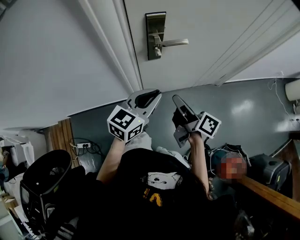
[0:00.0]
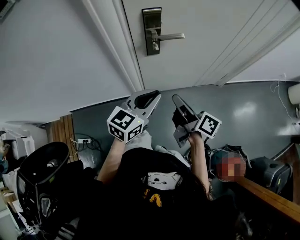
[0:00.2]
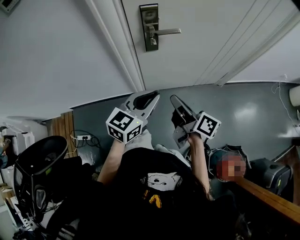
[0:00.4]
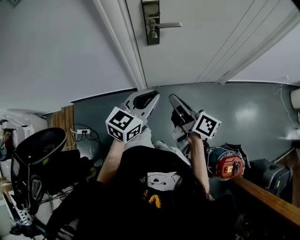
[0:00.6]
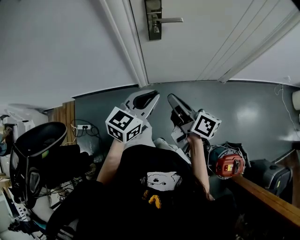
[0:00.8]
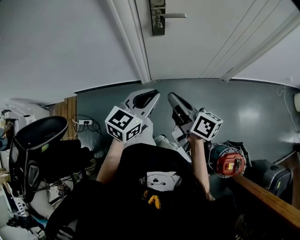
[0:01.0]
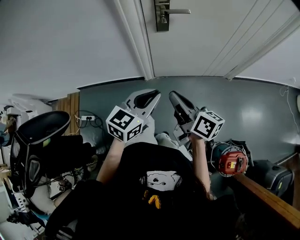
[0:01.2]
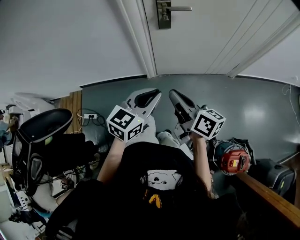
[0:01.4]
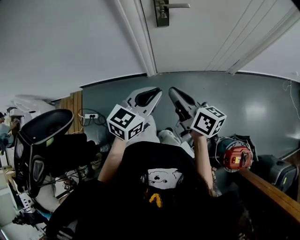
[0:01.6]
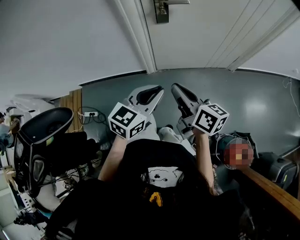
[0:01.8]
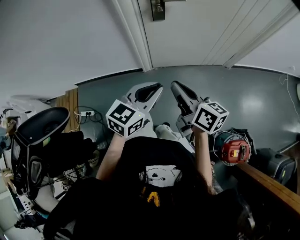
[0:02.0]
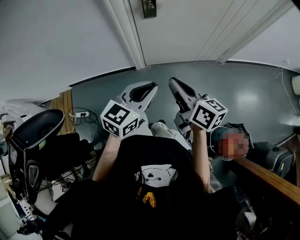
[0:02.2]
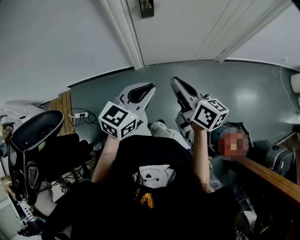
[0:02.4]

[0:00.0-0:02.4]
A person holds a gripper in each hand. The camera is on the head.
0.0 to 1.2 s: The left gripper moves about 20 cm.

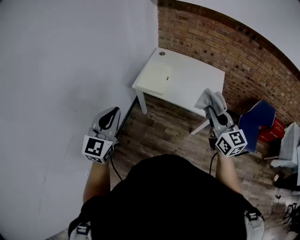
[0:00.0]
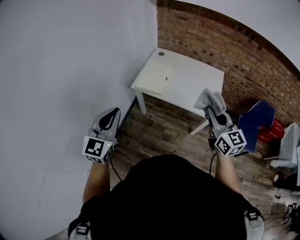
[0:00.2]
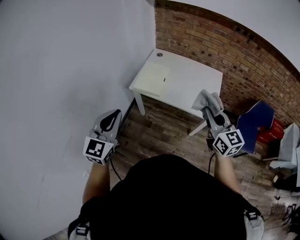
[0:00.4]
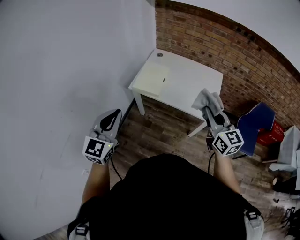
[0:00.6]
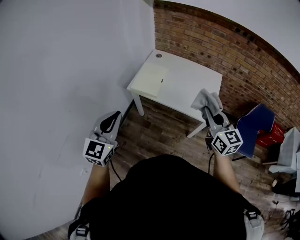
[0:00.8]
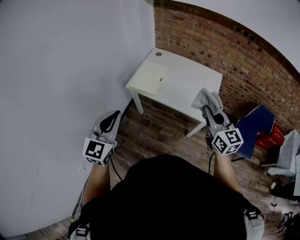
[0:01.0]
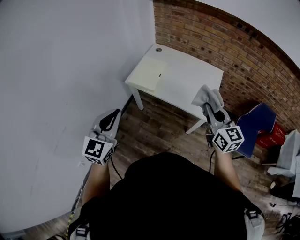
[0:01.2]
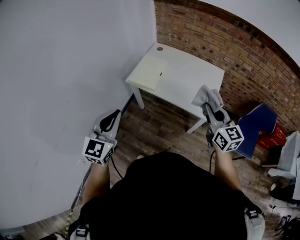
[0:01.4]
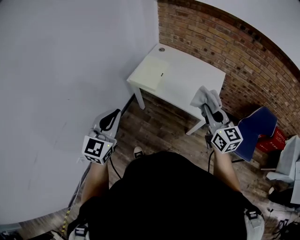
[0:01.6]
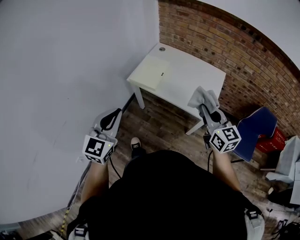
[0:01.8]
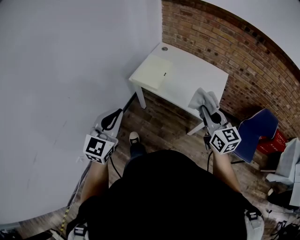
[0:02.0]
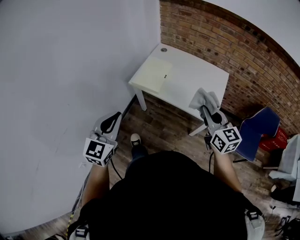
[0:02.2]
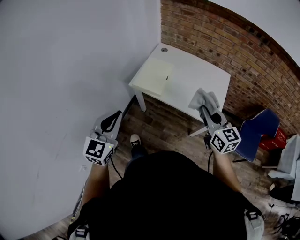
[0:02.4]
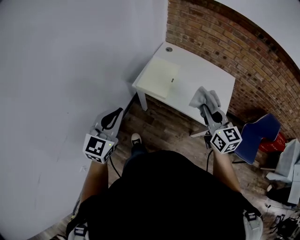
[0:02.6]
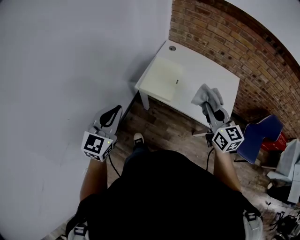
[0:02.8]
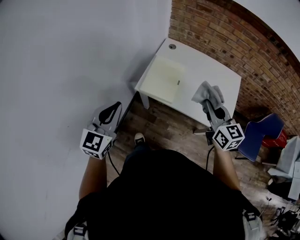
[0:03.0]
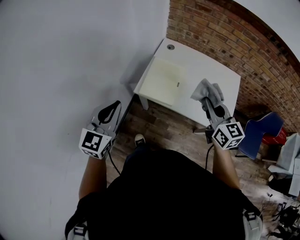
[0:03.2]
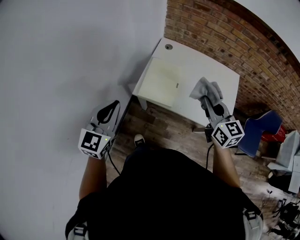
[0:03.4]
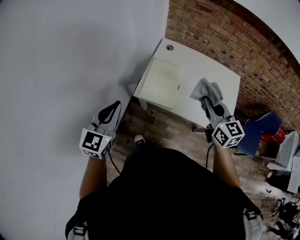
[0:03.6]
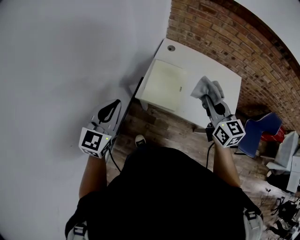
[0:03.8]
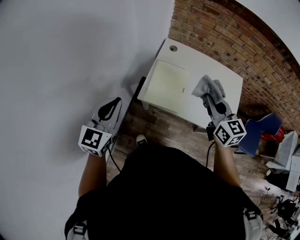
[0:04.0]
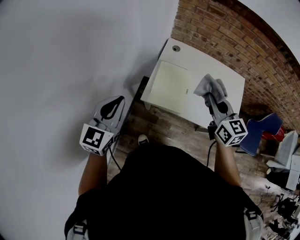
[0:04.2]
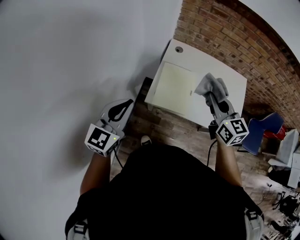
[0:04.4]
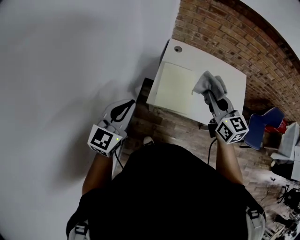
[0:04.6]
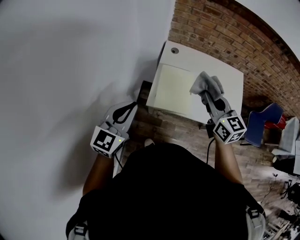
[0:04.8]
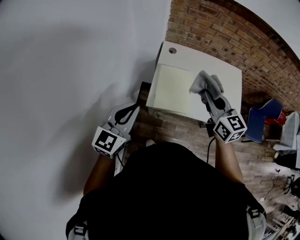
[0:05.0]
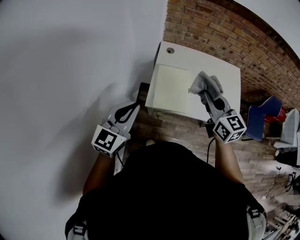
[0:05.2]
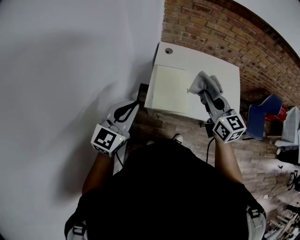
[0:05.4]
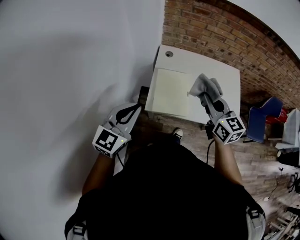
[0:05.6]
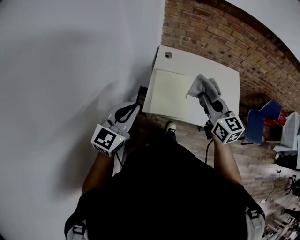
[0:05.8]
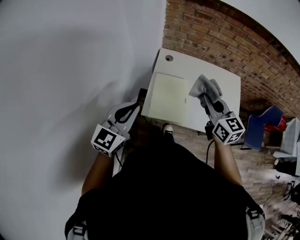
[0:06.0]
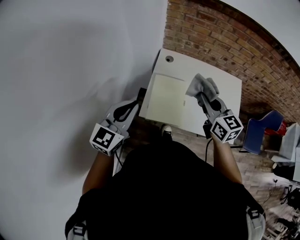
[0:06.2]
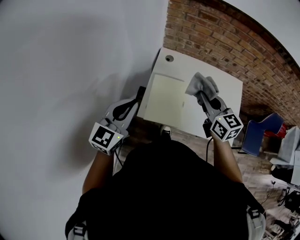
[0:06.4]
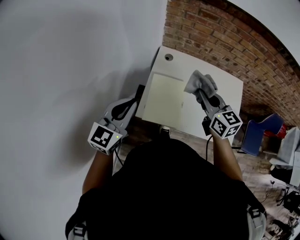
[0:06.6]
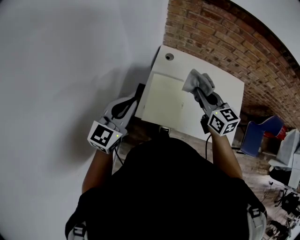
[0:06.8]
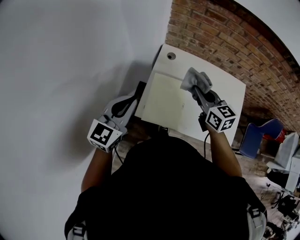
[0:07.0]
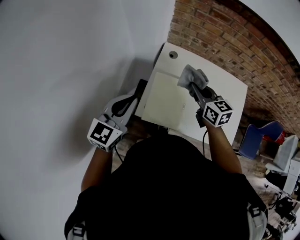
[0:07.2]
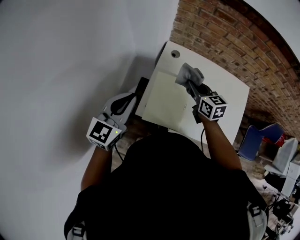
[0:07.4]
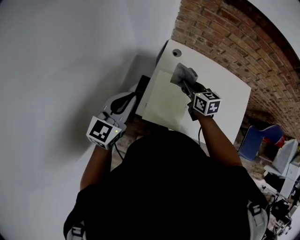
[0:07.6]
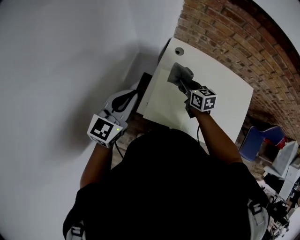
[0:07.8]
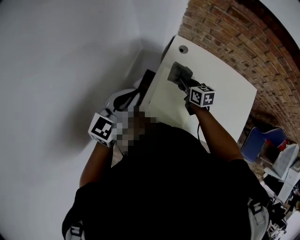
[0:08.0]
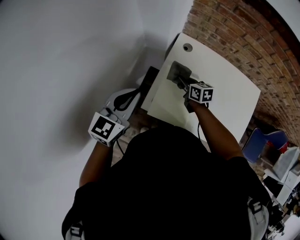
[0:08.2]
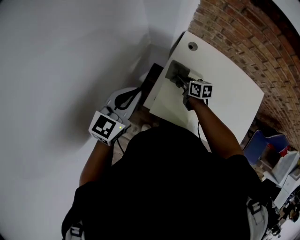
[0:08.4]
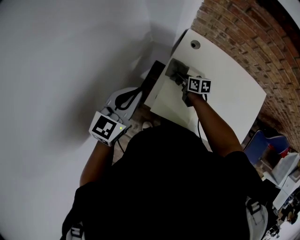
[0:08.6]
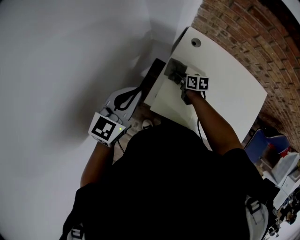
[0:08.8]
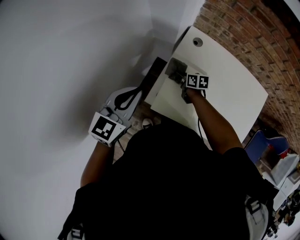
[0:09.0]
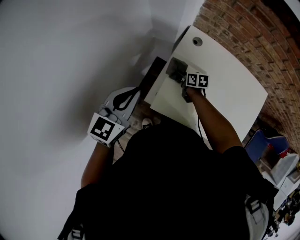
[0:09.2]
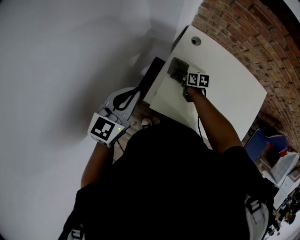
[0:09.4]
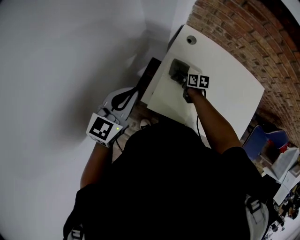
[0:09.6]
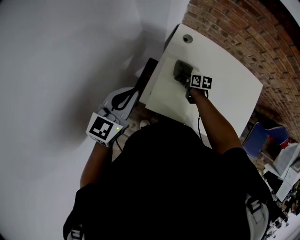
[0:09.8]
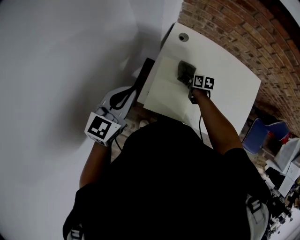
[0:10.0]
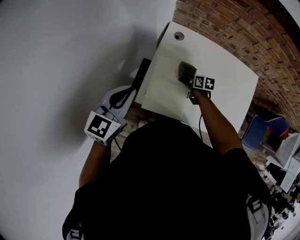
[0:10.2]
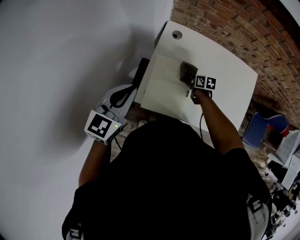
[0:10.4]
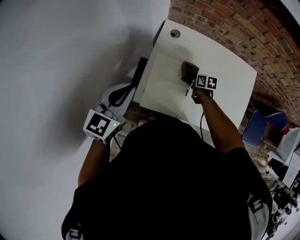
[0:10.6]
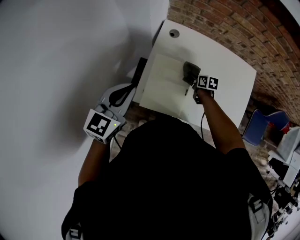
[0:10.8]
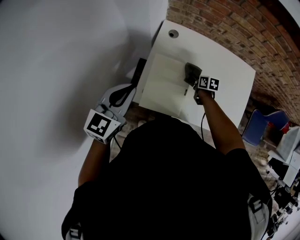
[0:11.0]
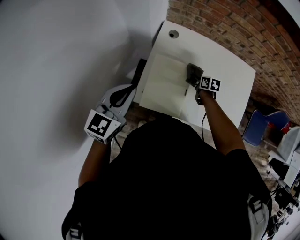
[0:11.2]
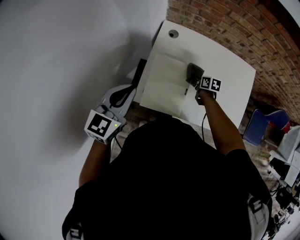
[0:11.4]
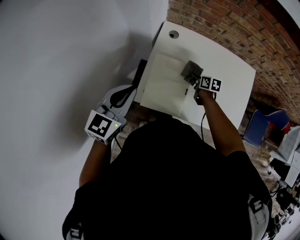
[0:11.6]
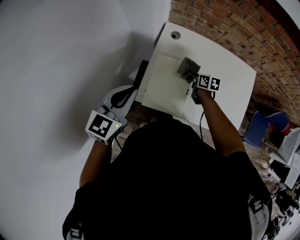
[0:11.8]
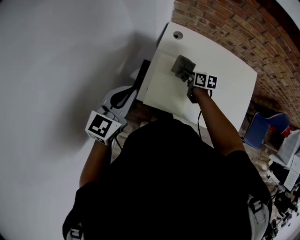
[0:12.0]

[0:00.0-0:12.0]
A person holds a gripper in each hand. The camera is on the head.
0.0 to 1.6 s: The grippers both shift to the right by about 10 cm.
1.6 to 3.0 s: The two grippers go approximately 25 cm forward and to the left.
3.0 to 4.4 s: Both grippers move forward and to the left, roughly 15 cm.
4.4 to 6.0 s: The left gripper is displaced forward by about 5 cm.
6.0 to 7.6 s: The right gripper goes about 25 cm forward and downward, and turns by approximately 20 degrees; the left gripper travels forward by approximately 10 cm.
7.6 to 9.0 s: The right gripper is displaced downward and to the left by some 20 cm, and rotates some 30 degrees.
9.0 to 10.4 s: The right gripper is displaced to the right by about 15 cm.
10.4 to 12.0 s: The right gripper is displaced upward and to the left by approximately 10 cm.

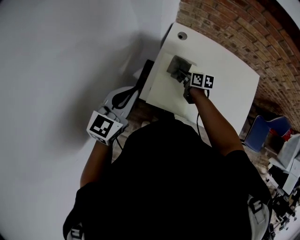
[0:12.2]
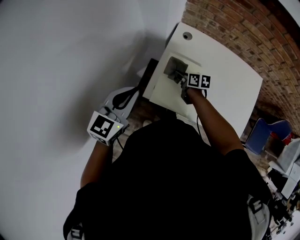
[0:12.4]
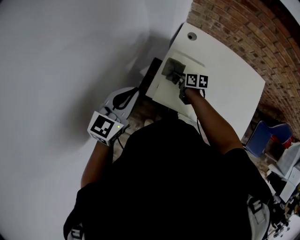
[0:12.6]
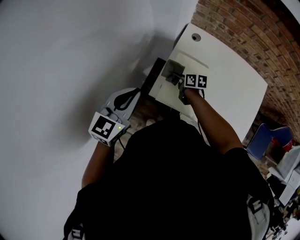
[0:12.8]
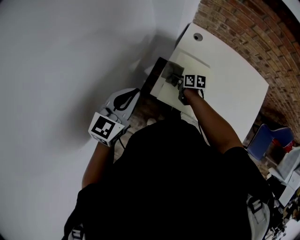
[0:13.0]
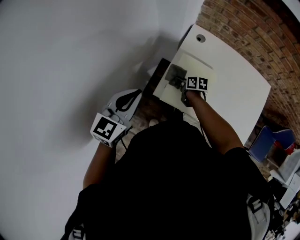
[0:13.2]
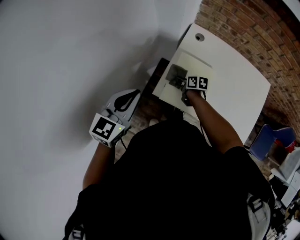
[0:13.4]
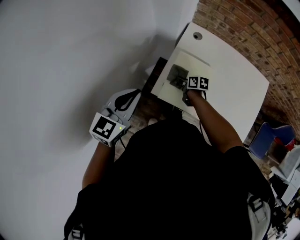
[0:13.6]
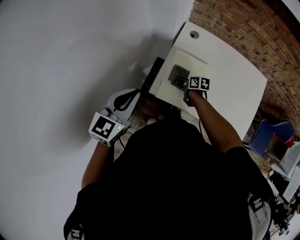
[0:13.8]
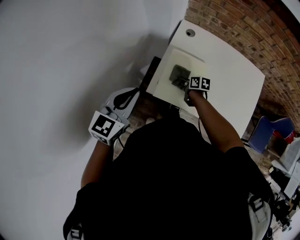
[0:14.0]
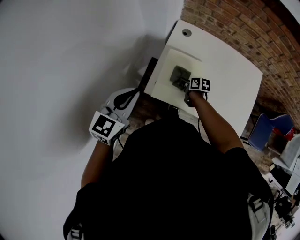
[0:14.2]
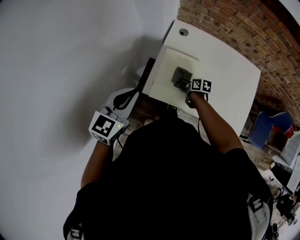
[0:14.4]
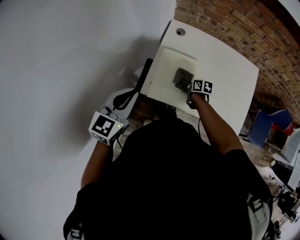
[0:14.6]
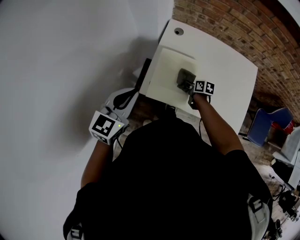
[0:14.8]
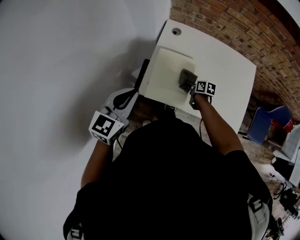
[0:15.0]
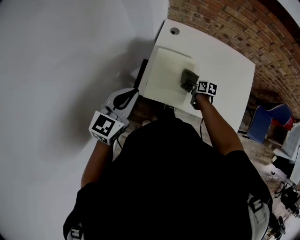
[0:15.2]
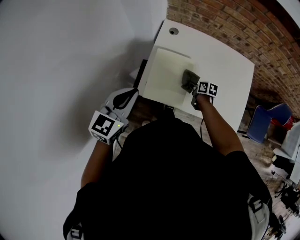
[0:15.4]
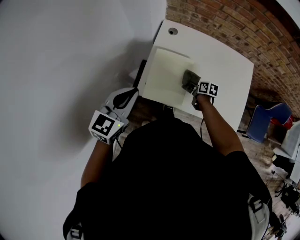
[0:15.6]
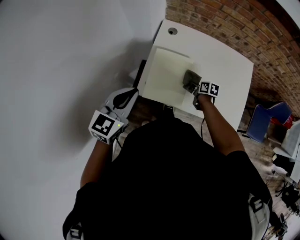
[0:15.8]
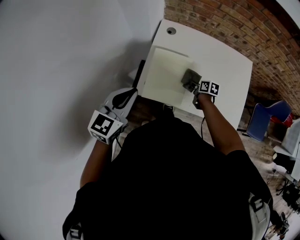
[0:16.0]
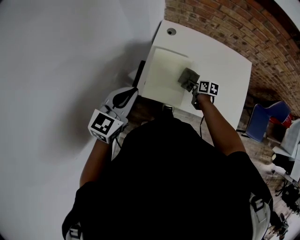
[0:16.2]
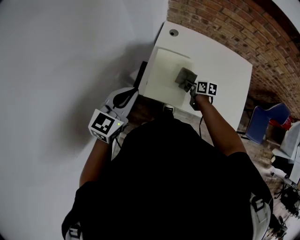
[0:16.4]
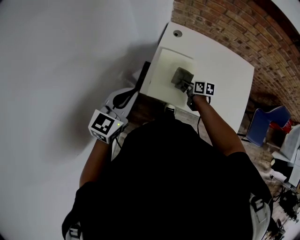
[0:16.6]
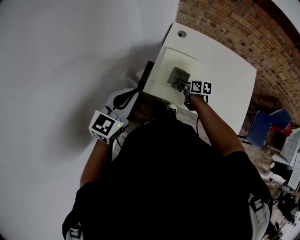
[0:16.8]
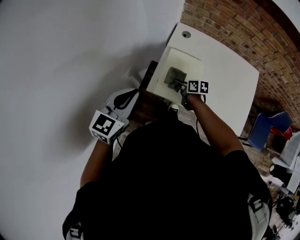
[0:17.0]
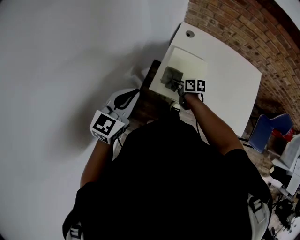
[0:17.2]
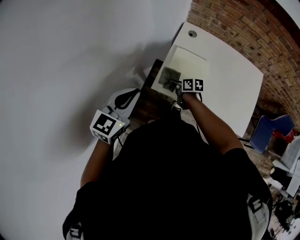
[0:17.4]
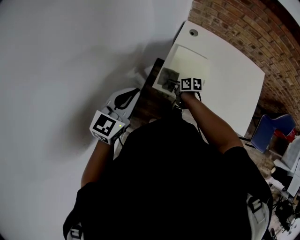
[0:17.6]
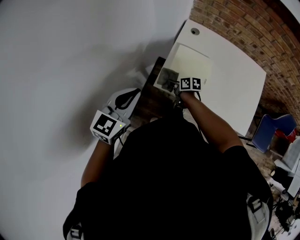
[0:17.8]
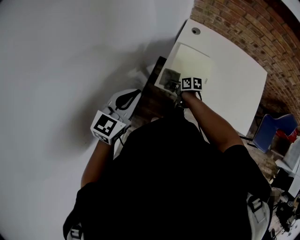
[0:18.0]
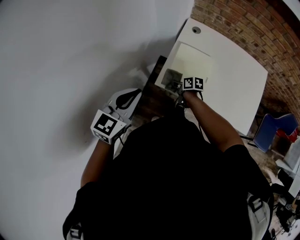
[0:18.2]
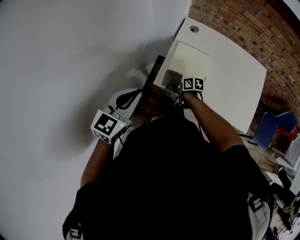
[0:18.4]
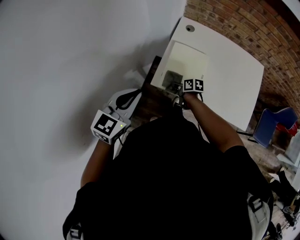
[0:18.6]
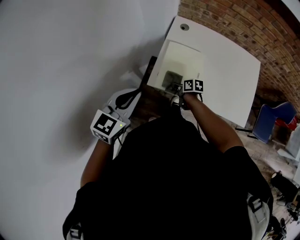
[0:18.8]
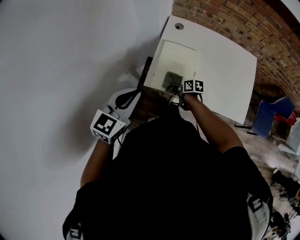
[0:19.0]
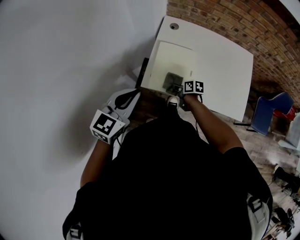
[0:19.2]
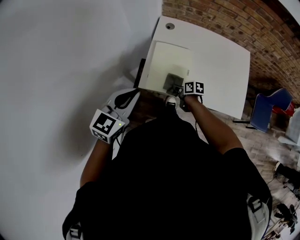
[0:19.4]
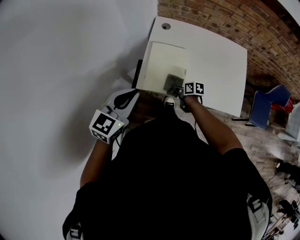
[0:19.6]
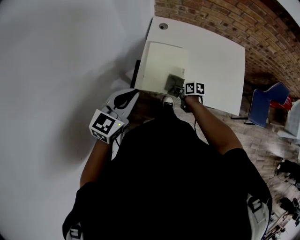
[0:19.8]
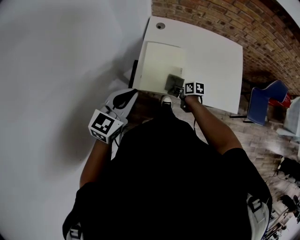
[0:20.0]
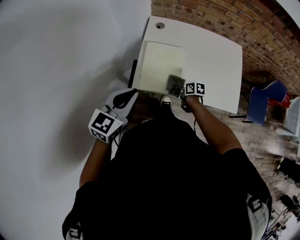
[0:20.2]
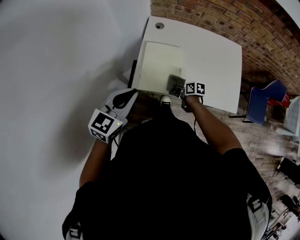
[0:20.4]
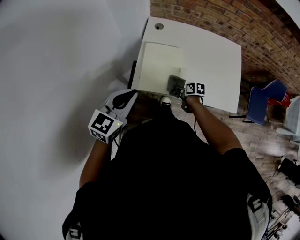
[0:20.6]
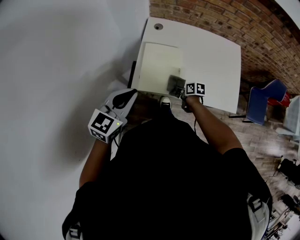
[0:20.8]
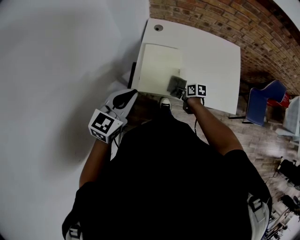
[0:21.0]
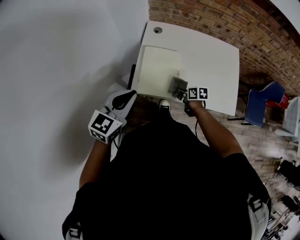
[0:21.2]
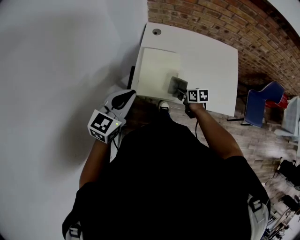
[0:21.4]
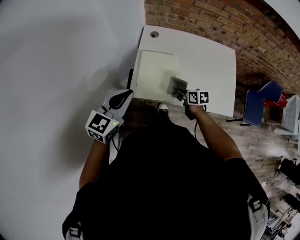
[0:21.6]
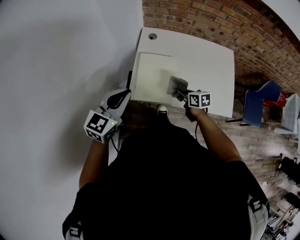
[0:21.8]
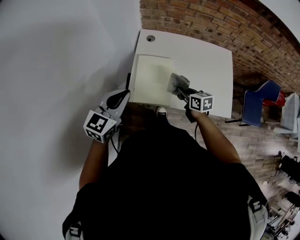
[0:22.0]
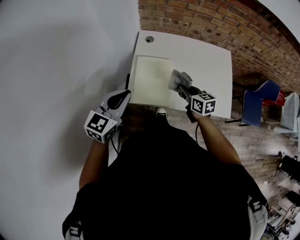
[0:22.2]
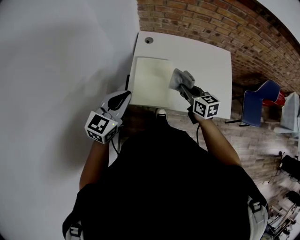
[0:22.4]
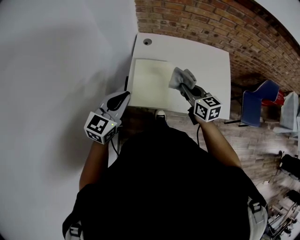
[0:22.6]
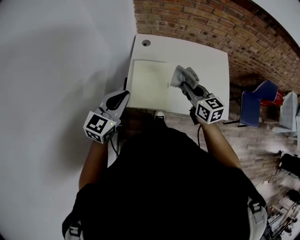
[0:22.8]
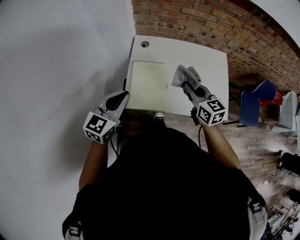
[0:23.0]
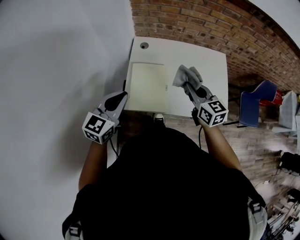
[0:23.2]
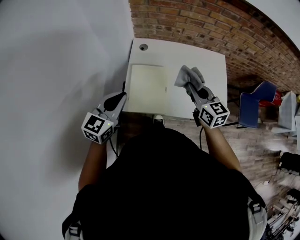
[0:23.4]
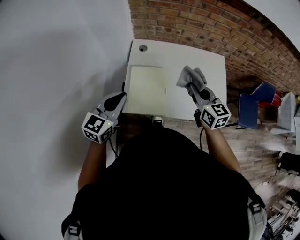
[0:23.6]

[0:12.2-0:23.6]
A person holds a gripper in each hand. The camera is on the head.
12.2 to 13.6 s: The left gripper travels to the left by some 5 cm; the right gripper moves to the left and downward, roughly 10 cm.
13.6 to 15.0 s: The right gripper is displaced to the right by roughly 15 cm, while the left gripper shifts roughly 5 cm to the right.
15.0 to 16.4 s: There are only small adjustments of the grippers.
16.4 to 17.8 s: The left gripper goes approximately 10 cm to the left. Meanwhile the right gripper goes about 20 cm to the left.
17.8 to 19.4 s: The right gripper travels to the right and backward by some 15 cm. Meanwhile the left gripper travels to the right by some 5 cm.
19.4 to 20.8 s: The right gripper moves to the right, some 5 cm.
20.8 to 22.2 s: The right gripper travels upward by approximately 20 cm, and turns by some 40 degrees.
22.2 to 23.6 s: The right gripper heads upward, covering some 15 cm, and swivels roughly 20 degrees.
